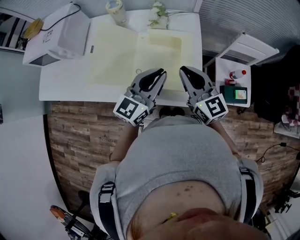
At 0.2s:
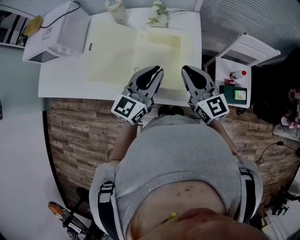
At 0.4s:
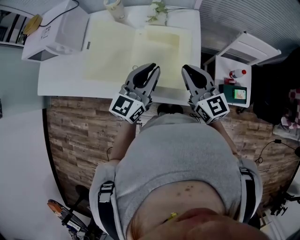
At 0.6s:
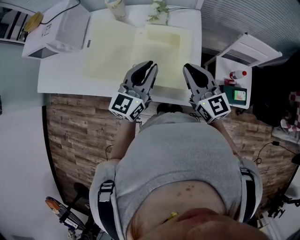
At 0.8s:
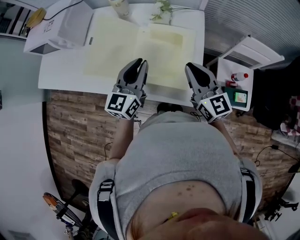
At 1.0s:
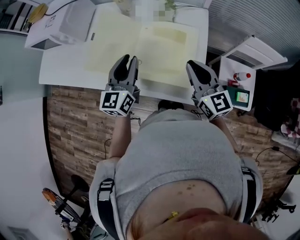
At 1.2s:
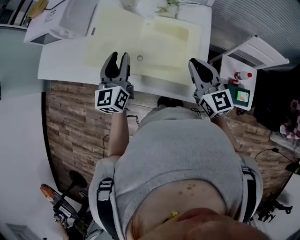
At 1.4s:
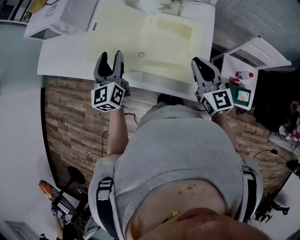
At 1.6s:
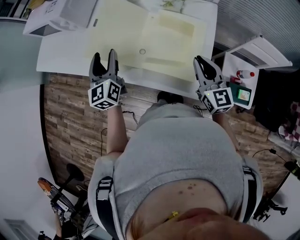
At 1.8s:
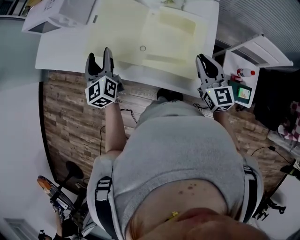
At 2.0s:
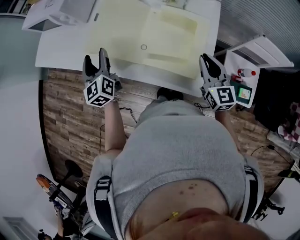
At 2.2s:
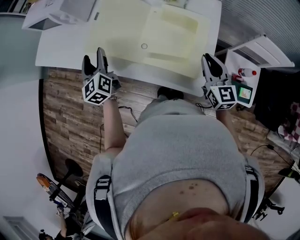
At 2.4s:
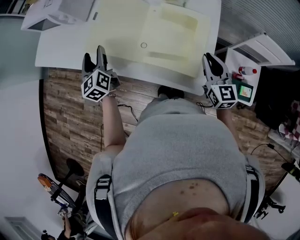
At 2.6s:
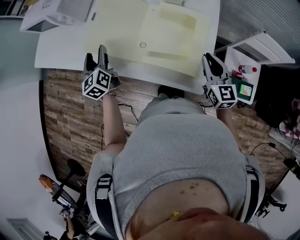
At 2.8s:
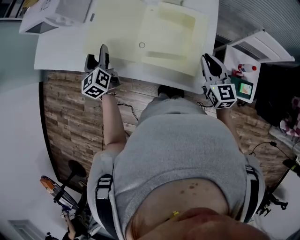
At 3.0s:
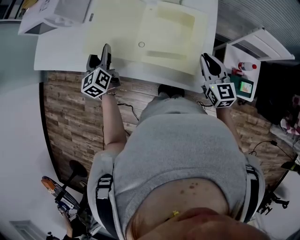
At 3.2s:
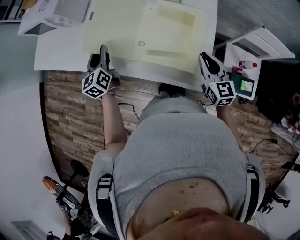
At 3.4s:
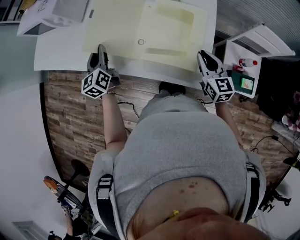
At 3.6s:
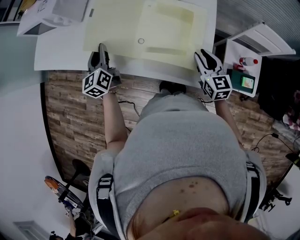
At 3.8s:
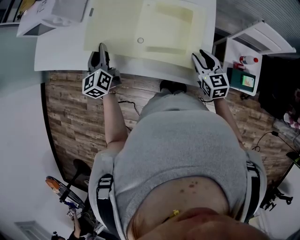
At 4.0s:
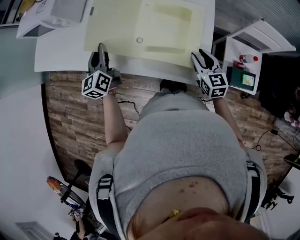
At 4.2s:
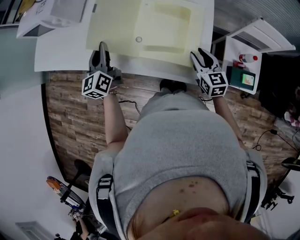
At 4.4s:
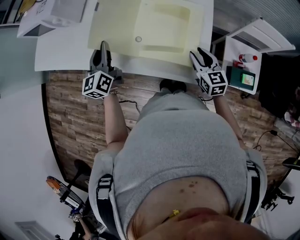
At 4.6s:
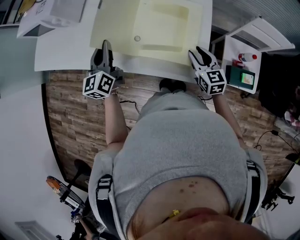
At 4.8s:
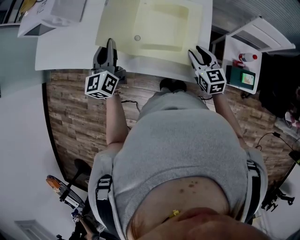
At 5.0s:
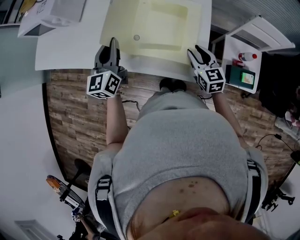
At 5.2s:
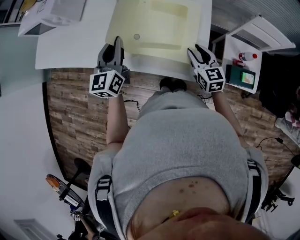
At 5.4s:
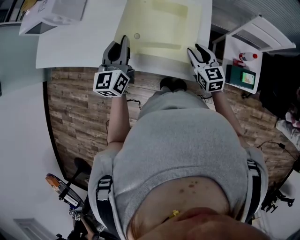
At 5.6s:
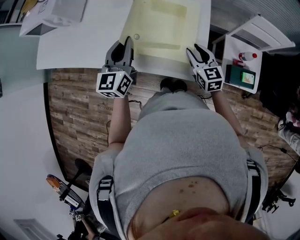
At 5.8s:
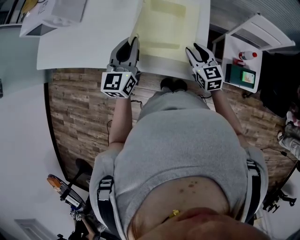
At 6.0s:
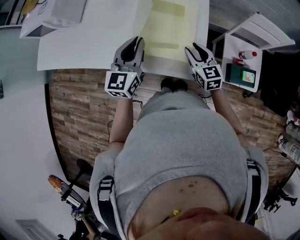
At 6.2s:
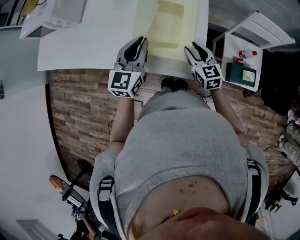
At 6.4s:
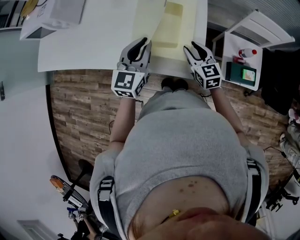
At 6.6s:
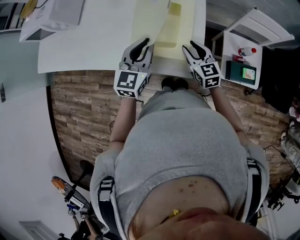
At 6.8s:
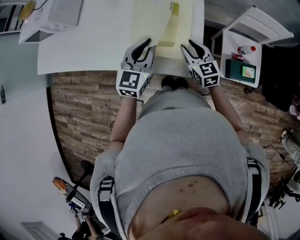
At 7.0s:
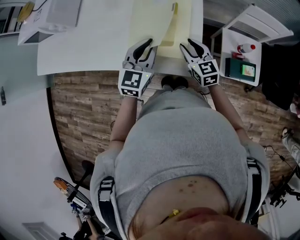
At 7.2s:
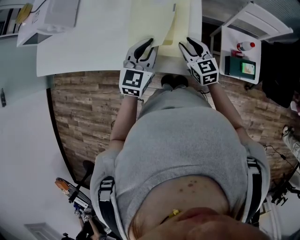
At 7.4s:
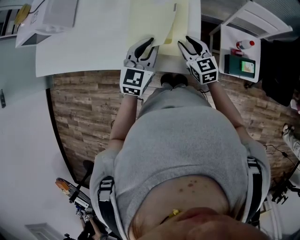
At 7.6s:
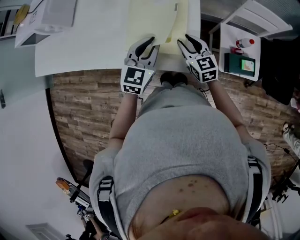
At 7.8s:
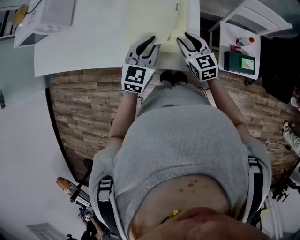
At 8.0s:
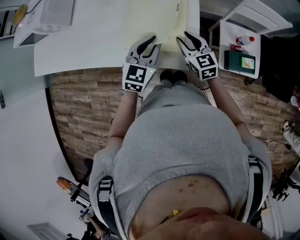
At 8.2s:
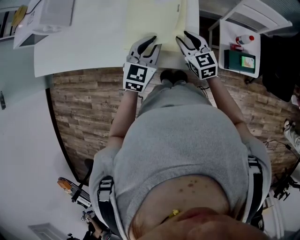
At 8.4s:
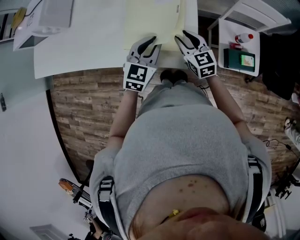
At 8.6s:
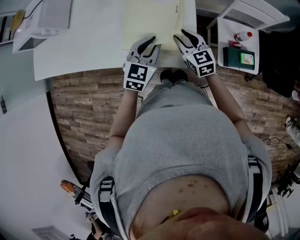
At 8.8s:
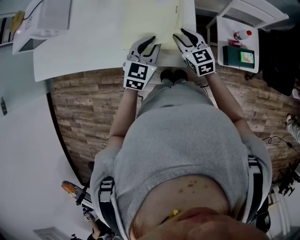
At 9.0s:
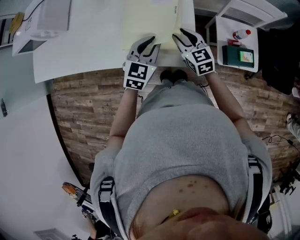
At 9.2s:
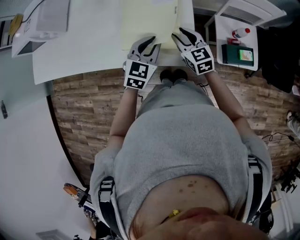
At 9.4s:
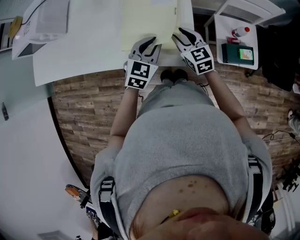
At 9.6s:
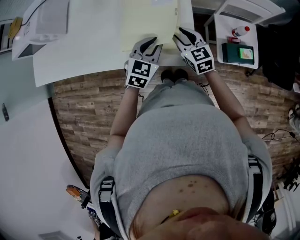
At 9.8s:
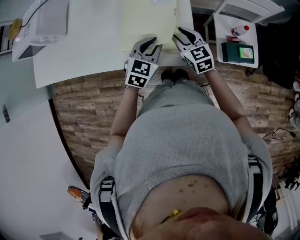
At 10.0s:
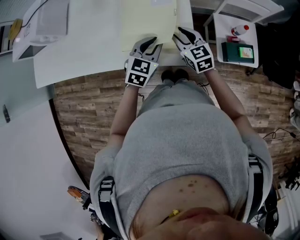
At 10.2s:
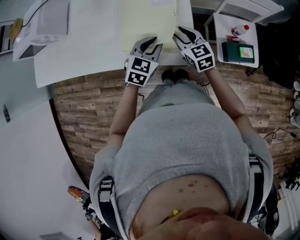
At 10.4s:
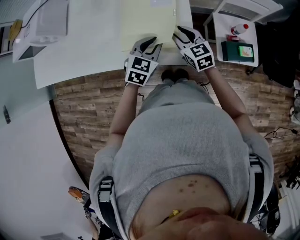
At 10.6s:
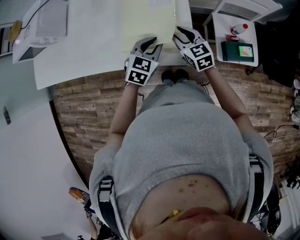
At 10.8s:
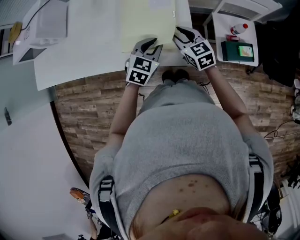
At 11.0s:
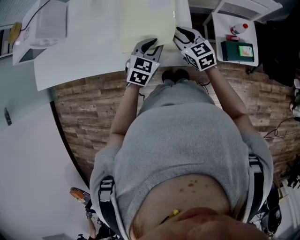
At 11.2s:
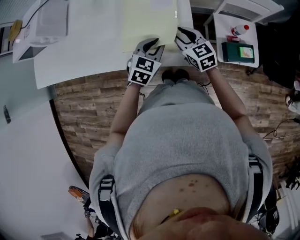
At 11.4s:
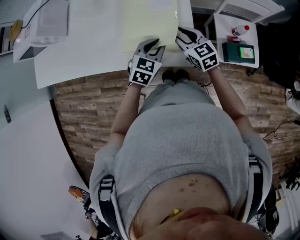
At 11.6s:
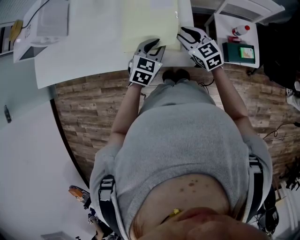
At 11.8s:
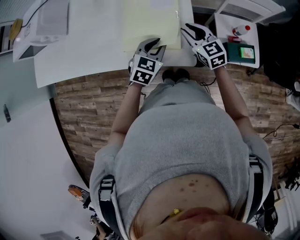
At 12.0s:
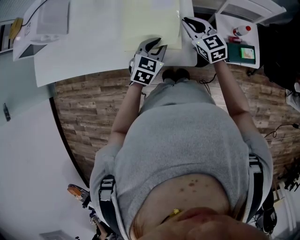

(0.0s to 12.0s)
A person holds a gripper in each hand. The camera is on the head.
0.0s - 1.6s: The left gripper moves some 25 cm, rotates approximately 50 degrees, and opens its fingers; the right gripper heads downward, covering about 5 cm.
1.6s - 3.0s: Both grippers move downward, roughly 5 cm.
3.0s - 4.4s: The left gripper changes place by some 5 cm, and closes; the right gripper moves downward, roughly 5 cm, and opens up.
4.4s - 6.0s: The left gripper moves to the right, about 15 cm, and changes its angle by approximately 30 degrees.
6.0s - 7.6s: The left gripper heads to the right, covering roughly 10 cm.
7.6s - 9.0s: The grippers stay close to where they were, moving slightly.
9.0s - 10.4s: The grippers stay close to where they were, moving slightly.
10.4s - 12.0s: The right gripper moves some 5 cm, and closes.

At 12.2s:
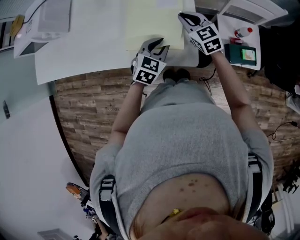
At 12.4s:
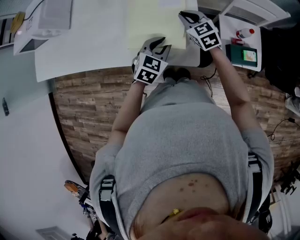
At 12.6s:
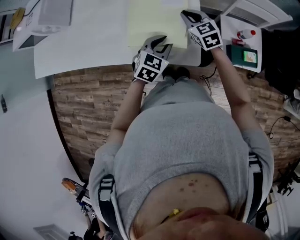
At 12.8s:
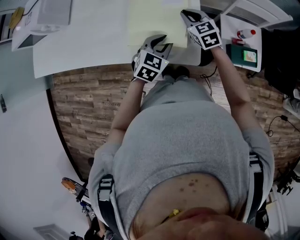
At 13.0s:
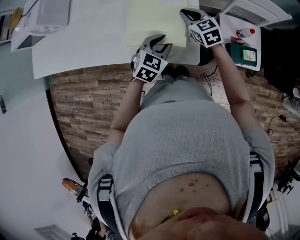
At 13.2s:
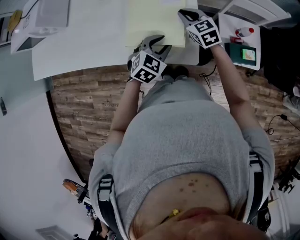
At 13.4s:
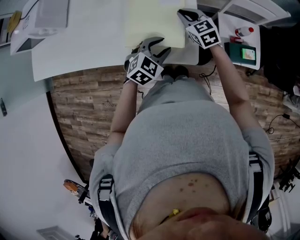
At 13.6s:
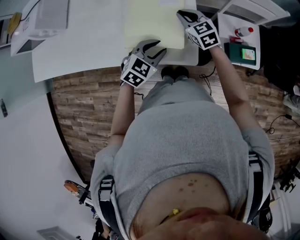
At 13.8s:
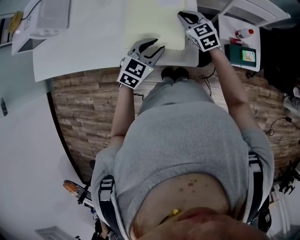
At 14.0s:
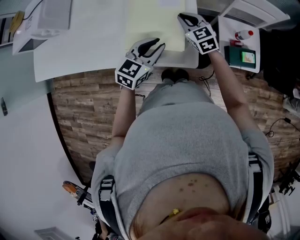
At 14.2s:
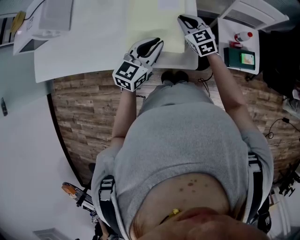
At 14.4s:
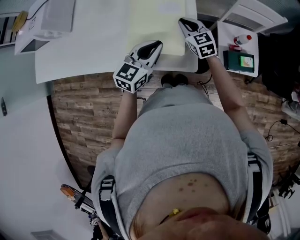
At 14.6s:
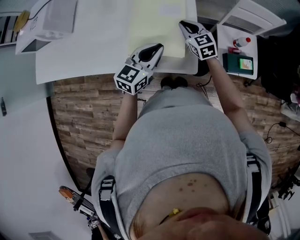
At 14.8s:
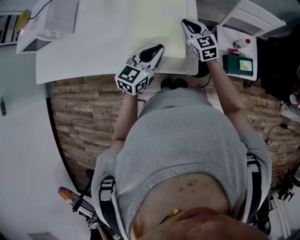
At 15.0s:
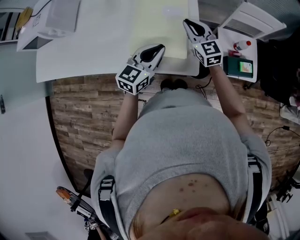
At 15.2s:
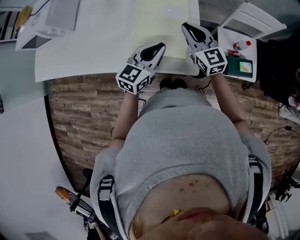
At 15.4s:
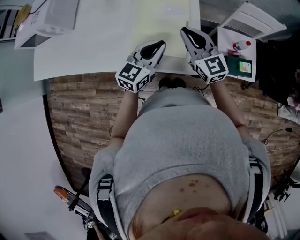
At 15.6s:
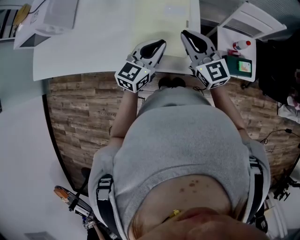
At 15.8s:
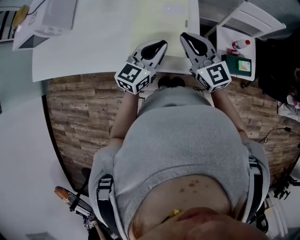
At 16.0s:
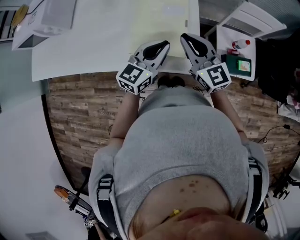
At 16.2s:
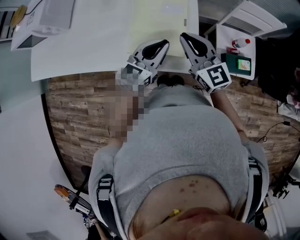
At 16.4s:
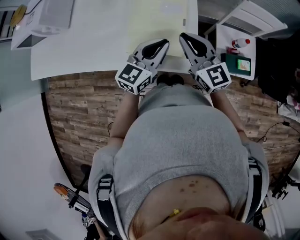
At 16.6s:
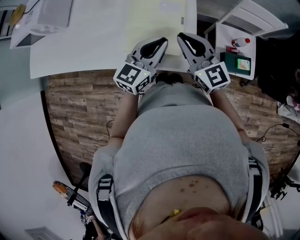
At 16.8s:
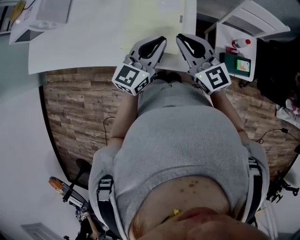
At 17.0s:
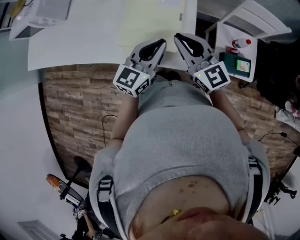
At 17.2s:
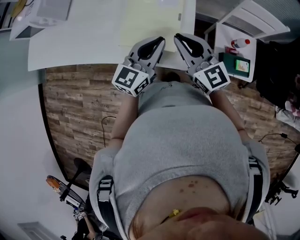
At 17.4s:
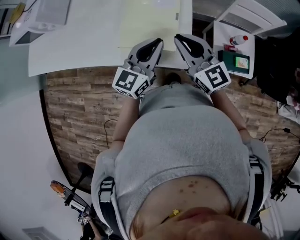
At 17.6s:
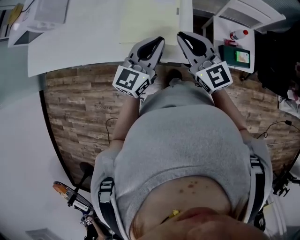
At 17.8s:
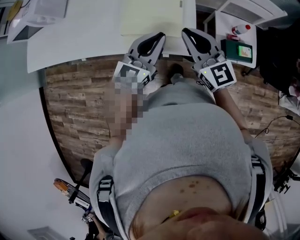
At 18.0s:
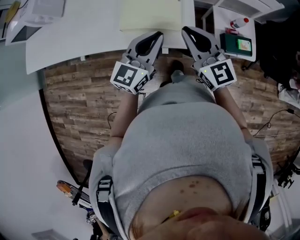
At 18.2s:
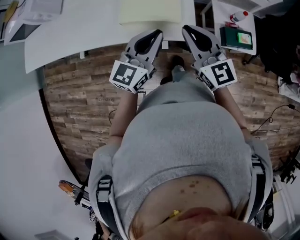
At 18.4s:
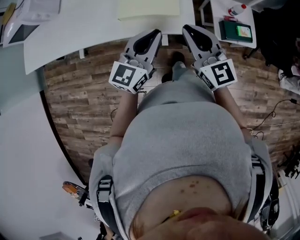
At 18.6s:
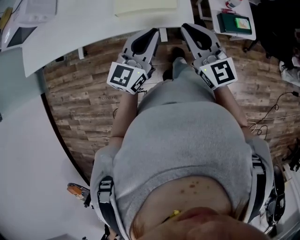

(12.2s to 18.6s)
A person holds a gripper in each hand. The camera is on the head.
12.2s - 13.8s: The grippers stay close to where they were, moving slightly.
13.8s - 15.4s: The right gripper travels upward and backward by approximately 15 cm, and rotates about 20 degrees. The left gripper shifts approximately 5 cm upward, rotates some 30 degrees, and closes up.
15.4s - 17.0s: The grippers make only small movements.
17.0s - 18.6s: The grippers both shift backward by about 15 cm.

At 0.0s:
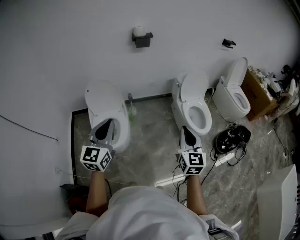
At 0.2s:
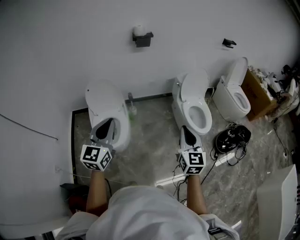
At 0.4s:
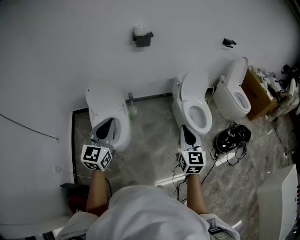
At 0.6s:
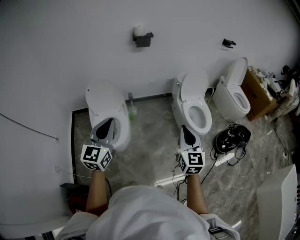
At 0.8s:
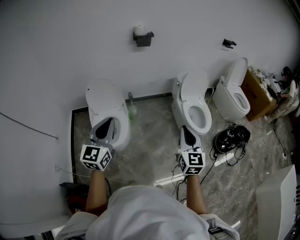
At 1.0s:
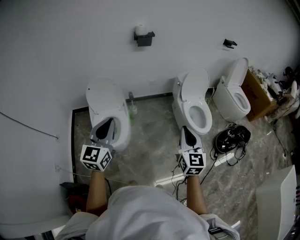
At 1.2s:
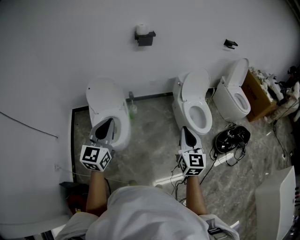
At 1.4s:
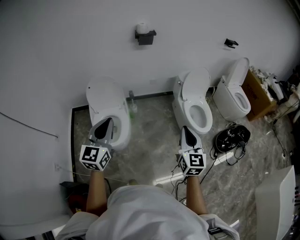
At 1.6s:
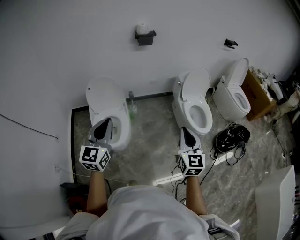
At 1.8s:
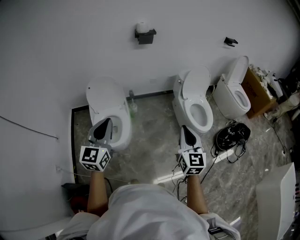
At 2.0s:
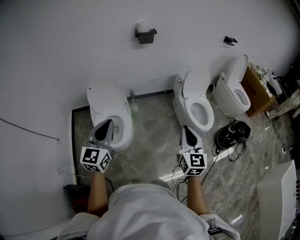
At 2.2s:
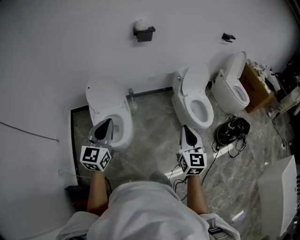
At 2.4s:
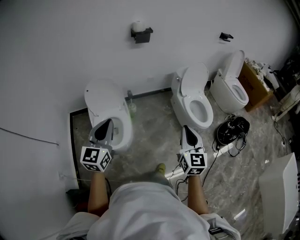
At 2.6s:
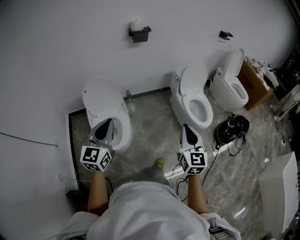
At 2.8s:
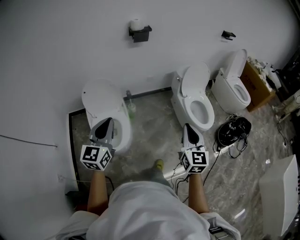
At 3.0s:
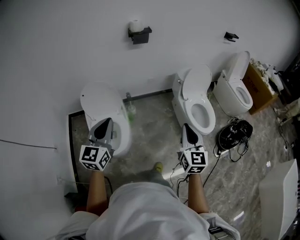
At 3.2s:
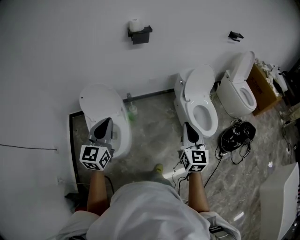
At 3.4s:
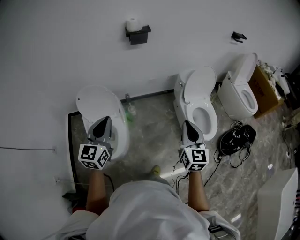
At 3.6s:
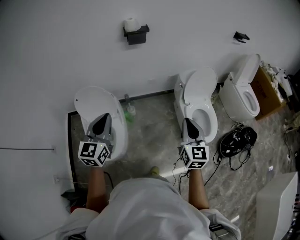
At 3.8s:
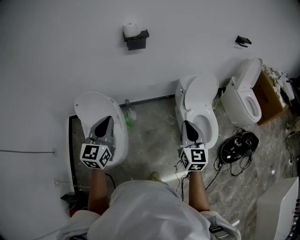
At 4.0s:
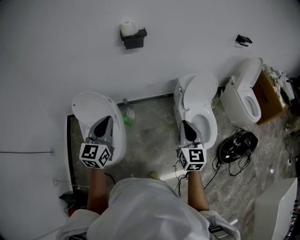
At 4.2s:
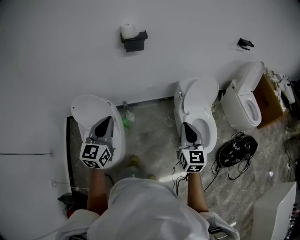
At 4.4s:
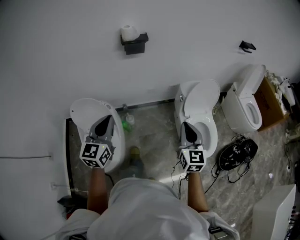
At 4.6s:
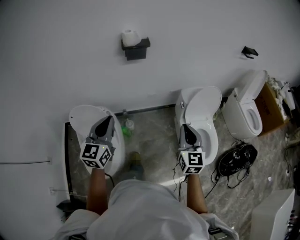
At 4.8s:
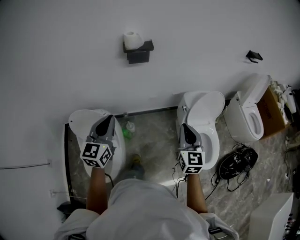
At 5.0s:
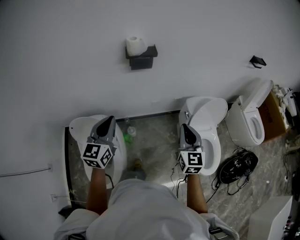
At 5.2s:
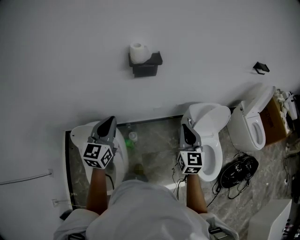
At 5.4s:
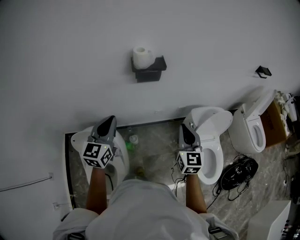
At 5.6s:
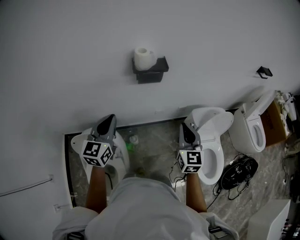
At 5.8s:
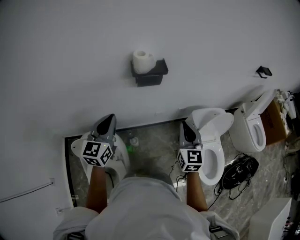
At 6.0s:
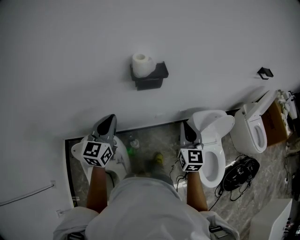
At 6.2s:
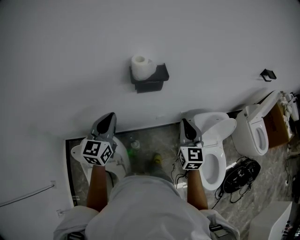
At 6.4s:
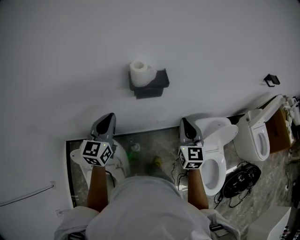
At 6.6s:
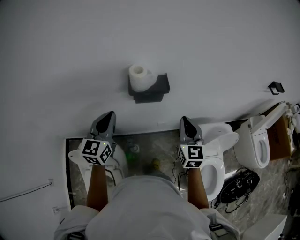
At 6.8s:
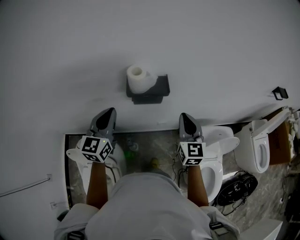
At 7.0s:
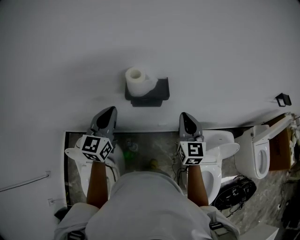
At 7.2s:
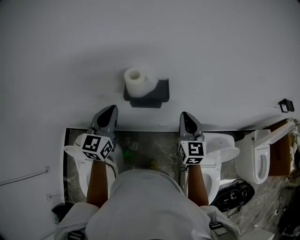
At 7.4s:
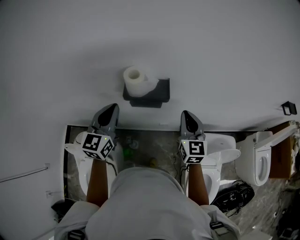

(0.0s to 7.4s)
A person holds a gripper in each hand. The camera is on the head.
0.0s - 1.4s: The grippers move only a little.
1.4s - 3.0s: The two grippers go some 10 cm forward.
3.0s - 4.4s: Both grippers move forward, roughly 30 cm.
4.4s - 6.0s: The left gripper is displaced forward by approximately 35 cm, while the right gripper goes approximately 40 cm forward and to the left.
6.0s - 7.4s: The grippers both shift forward by approximately 20 cm.
